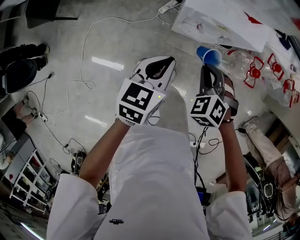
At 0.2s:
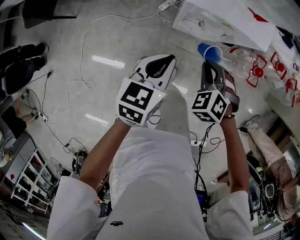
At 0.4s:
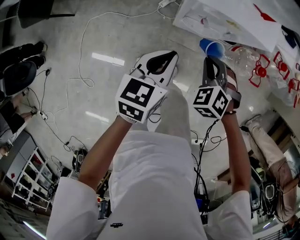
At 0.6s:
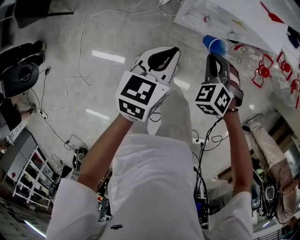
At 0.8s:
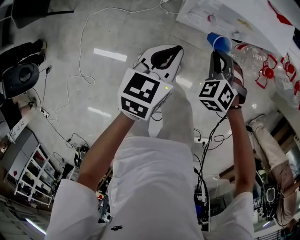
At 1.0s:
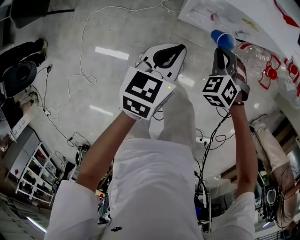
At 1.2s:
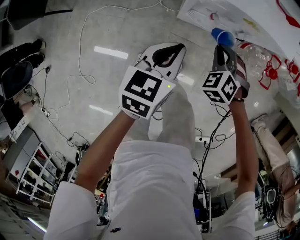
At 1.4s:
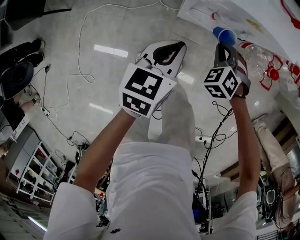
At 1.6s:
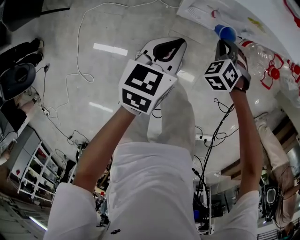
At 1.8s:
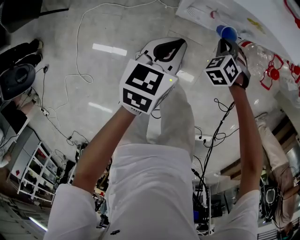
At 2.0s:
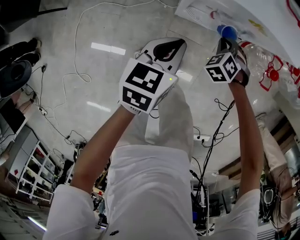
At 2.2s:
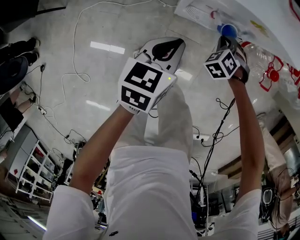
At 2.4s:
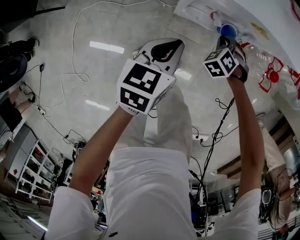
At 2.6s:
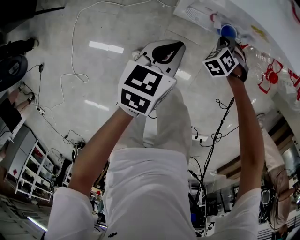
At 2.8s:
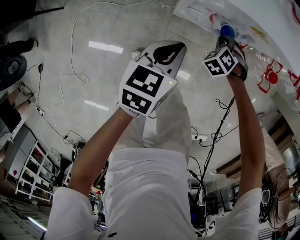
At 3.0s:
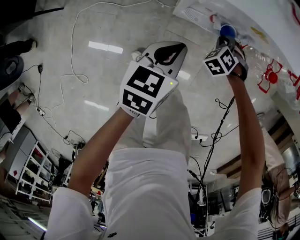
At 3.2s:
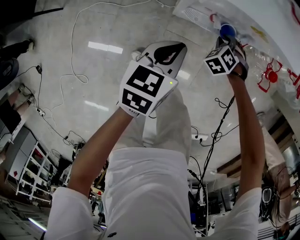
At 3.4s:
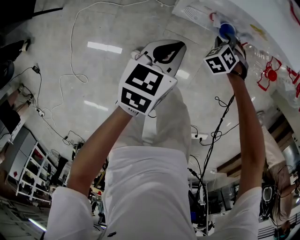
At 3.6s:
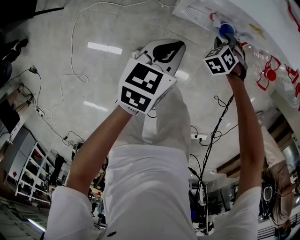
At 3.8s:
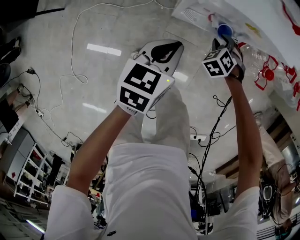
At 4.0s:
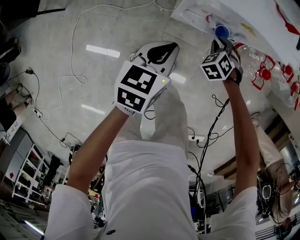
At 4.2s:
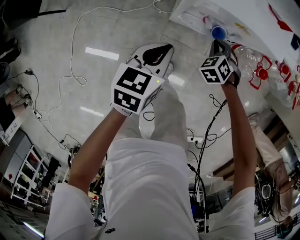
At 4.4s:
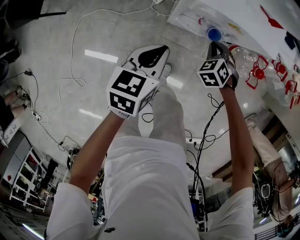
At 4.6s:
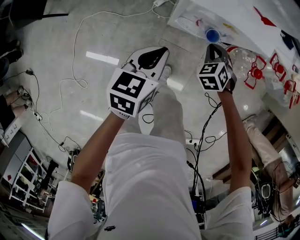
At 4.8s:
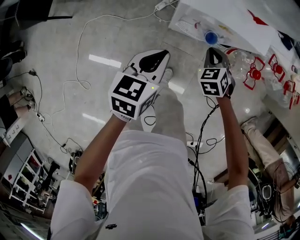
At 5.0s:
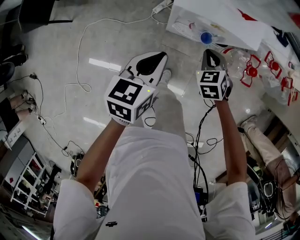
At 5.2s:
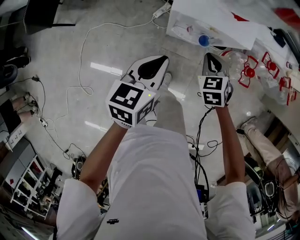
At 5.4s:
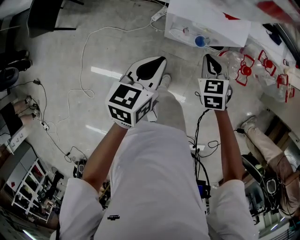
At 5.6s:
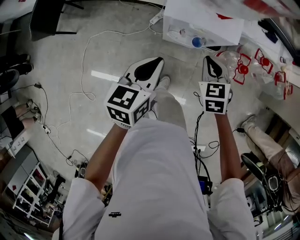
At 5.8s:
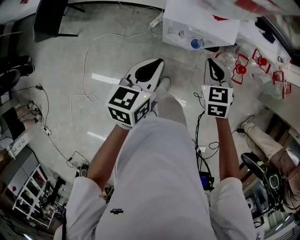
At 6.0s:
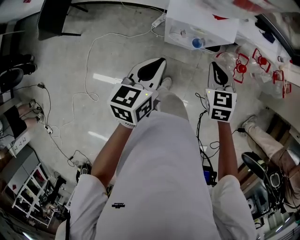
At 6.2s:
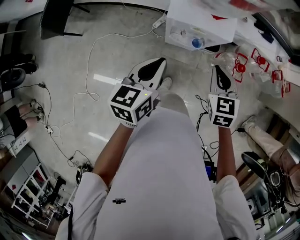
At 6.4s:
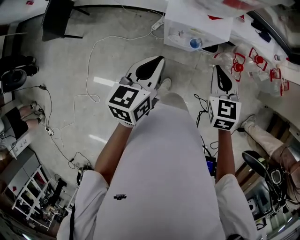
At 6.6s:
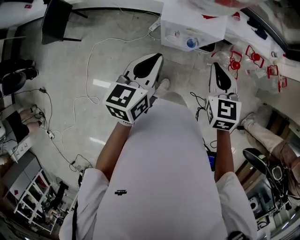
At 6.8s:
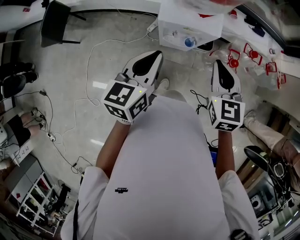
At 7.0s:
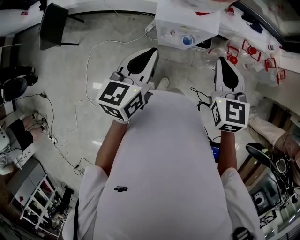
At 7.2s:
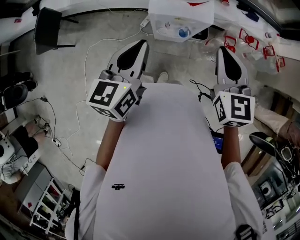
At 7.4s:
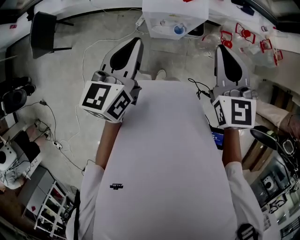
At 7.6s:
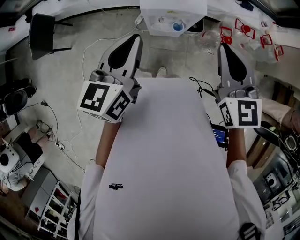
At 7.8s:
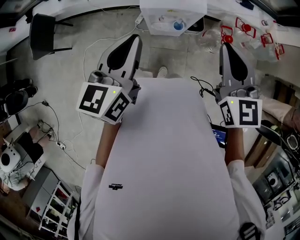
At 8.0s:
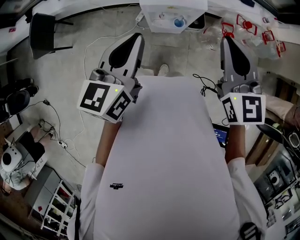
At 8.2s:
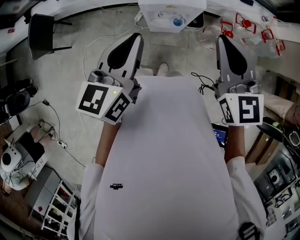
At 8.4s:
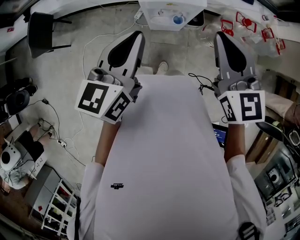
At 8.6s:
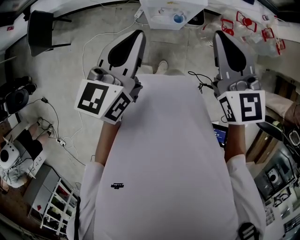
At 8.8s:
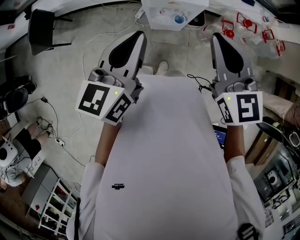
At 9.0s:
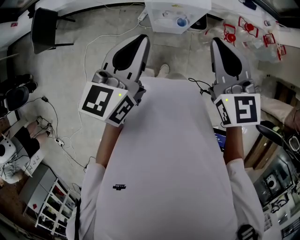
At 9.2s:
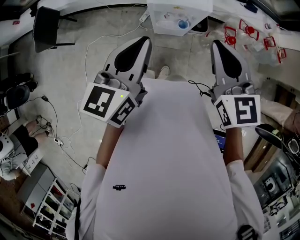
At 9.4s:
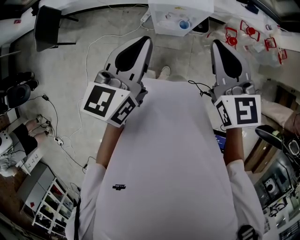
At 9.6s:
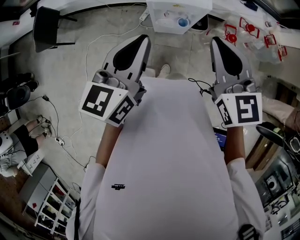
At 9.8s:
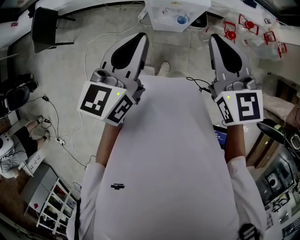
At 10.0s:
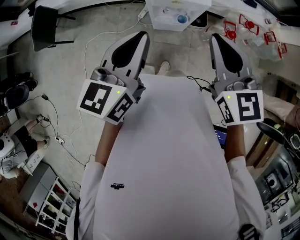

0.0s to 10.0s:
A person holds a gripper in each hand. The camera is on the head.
0.0s to 1.4s: The right gripper heads downward and forward, covering some 20 cm, while the left gripper shifts roughly 10 cm downward.
1.4s to 2.8s: The right gripper goes approximately 10 cm downward and forward.
2.8s to 4.2s: The right gripper heads upward, covering some 5 cm, and opens, then closes again. Meanwhile the left gripper shifts by approximately 5 cm.
4.2s to 5.8s: The grippers both shift upward by roughly 25 cm. The right gripper swivels some 40 degrees.
5.8s to 7.2s: The right gripper goes about 20 cm upward, and swivels about 20 degrees; the left gripper travels upward by about 15 cm.
7.2s to 8.6s: The left gripper moves approximately 5 cm, while the right gripper changes place by about 5 cm.
8.6s to 10.0s: The grippers make only small movements.

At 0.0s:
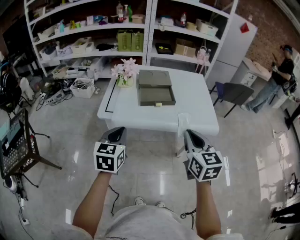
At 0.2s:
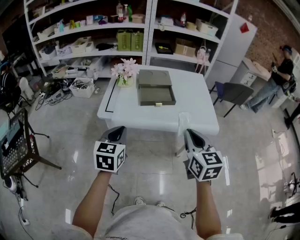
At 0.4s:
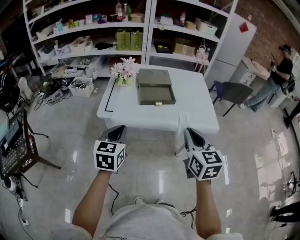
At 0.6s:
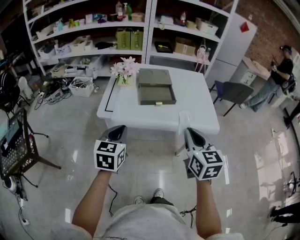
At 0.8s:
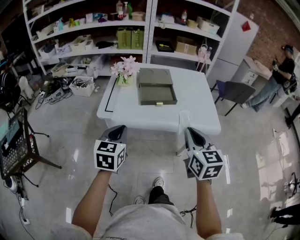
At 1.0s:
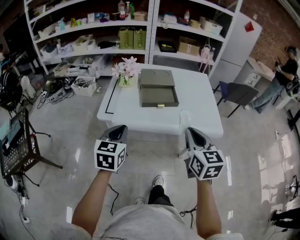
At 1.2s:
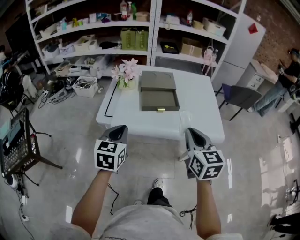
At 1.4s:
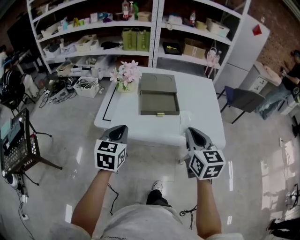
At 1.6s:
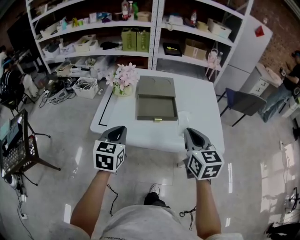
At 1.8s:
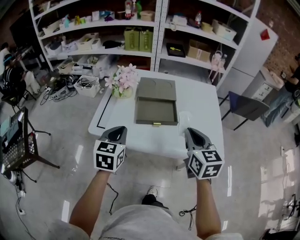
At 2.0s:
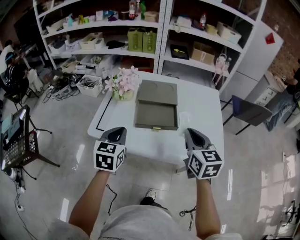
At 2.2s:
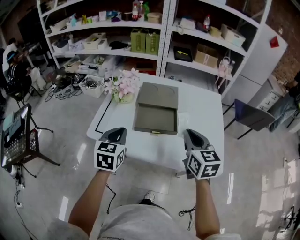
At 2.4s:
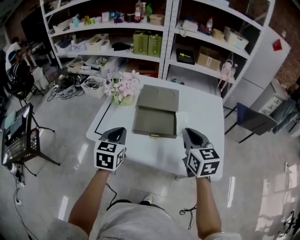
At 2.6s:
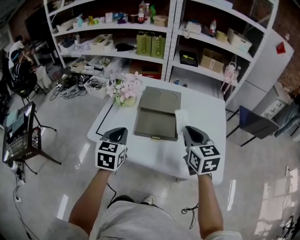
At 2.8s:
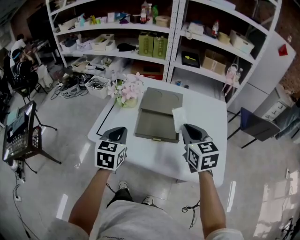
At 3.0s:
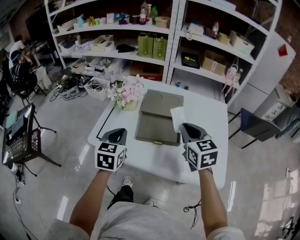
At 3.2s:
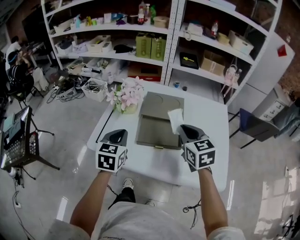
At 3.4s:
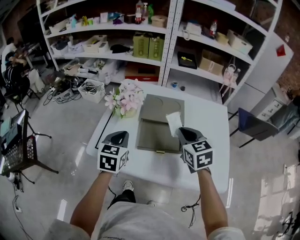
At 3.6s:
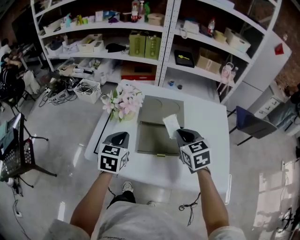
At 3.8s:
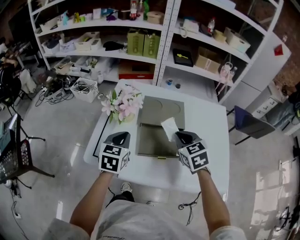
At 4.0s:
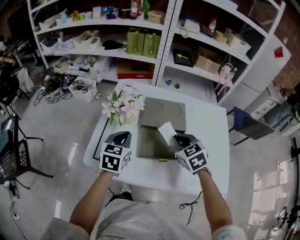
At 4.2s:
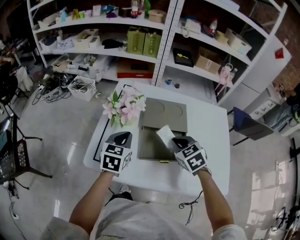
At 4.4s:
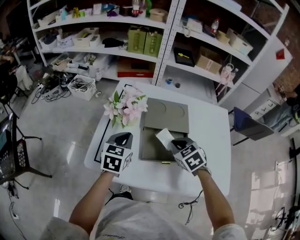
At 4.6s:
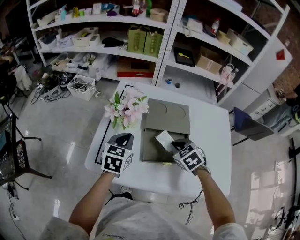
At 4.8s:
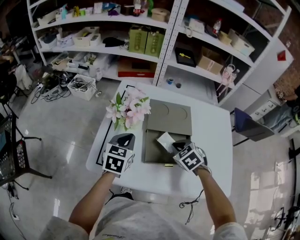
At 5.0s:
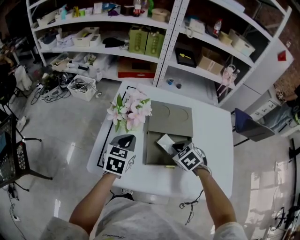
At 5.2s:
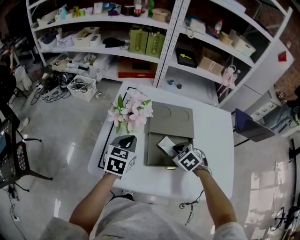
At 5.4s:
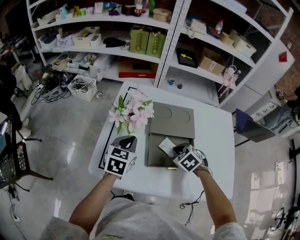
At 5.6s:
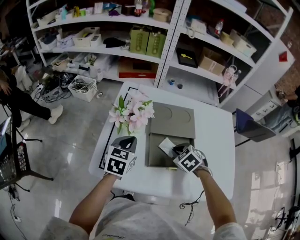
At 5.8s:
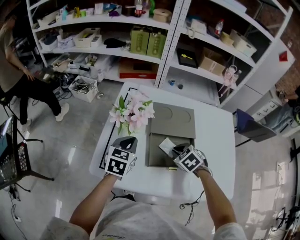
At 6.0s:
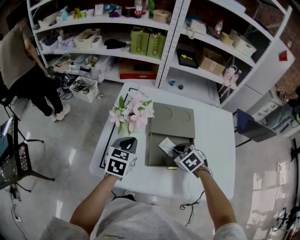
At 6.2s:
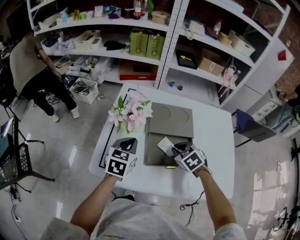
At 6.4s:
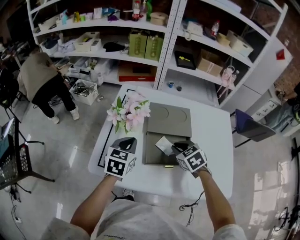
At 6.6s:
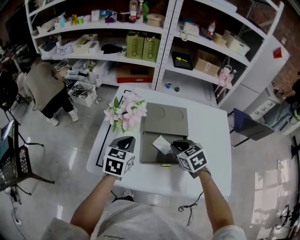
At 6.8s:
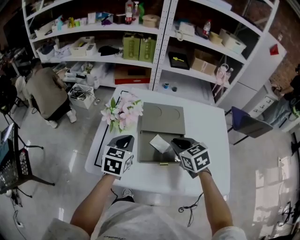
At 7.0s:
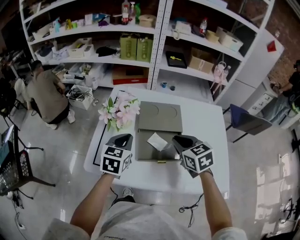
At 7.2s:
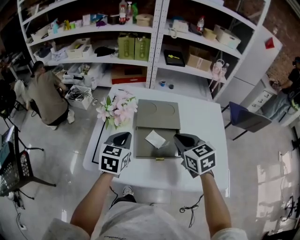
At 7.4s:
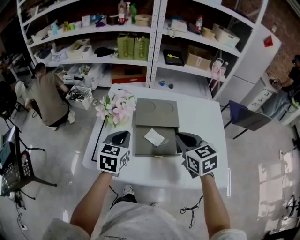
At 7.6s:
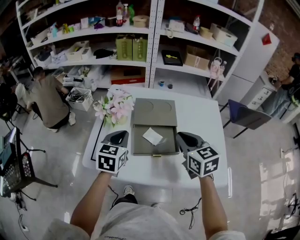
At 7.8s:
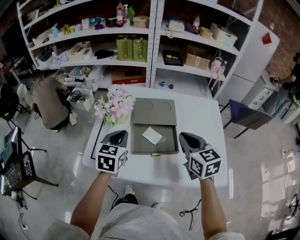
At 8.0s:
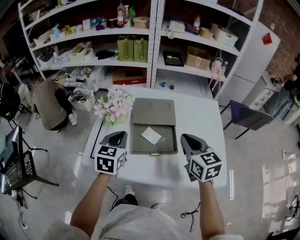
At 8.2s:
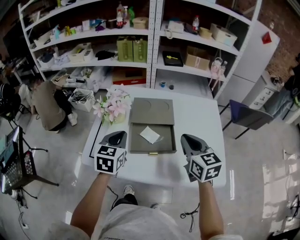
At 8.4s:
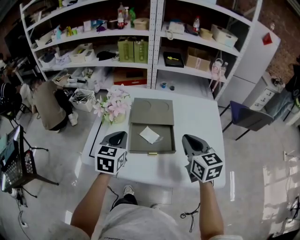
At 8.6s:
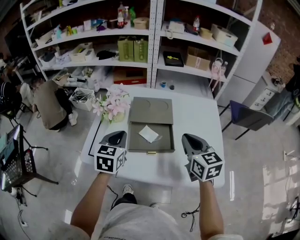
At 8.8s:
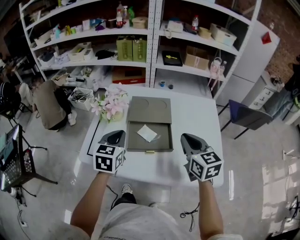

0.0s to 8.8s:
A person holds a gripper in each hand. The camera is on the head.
0.0s to 1.4s: Both grippers travel together forward, roughly 10 cm.
1.4s to 3.0s: The left gripper goes approximately 15 cm forward, while the right gripper goes approximately 20 cm forward.
3.0s to 4.4s: The right gripper goes about 15 cm downward, forward and to the left, and turns by about 30 degrees; the left gripper goes about 15 cm forward and downward.
4.4s to 5.8s: The right gripper shifts roughly 5 cm downward.
5.8s to 7.4s: The left gripper shifts roughly 5 cm upward; the right gripper heads upward, covering about 20 cm, and points its fingers about 40 degrees further upward.
7.4s to 8.8s: The right gripper goes some 5 cm to the right.

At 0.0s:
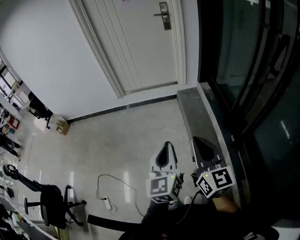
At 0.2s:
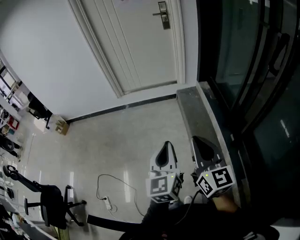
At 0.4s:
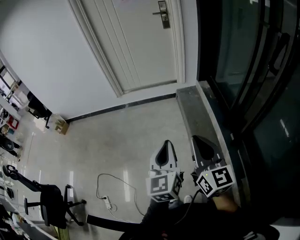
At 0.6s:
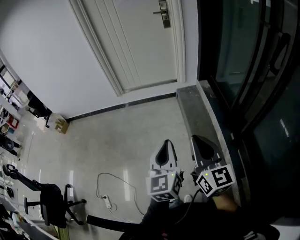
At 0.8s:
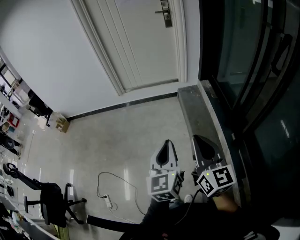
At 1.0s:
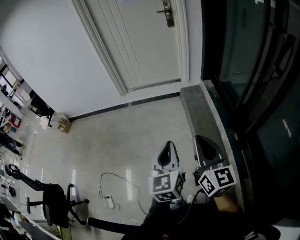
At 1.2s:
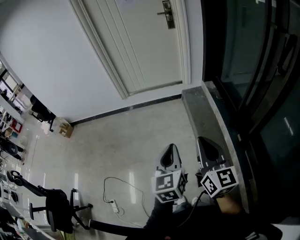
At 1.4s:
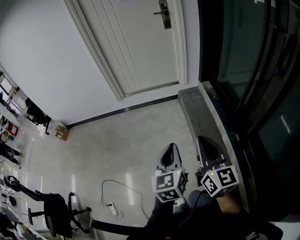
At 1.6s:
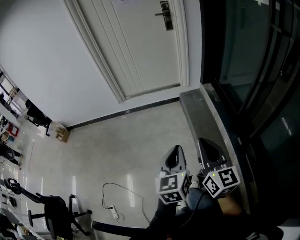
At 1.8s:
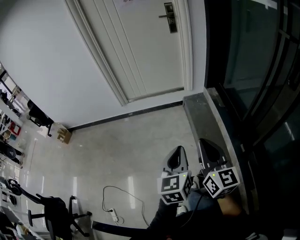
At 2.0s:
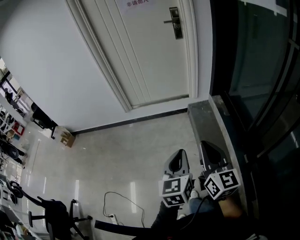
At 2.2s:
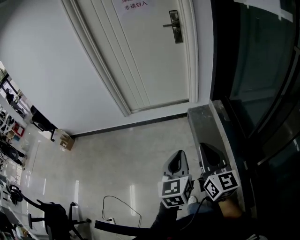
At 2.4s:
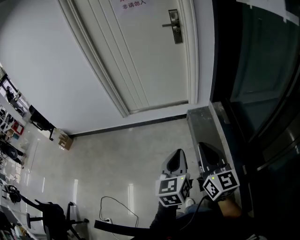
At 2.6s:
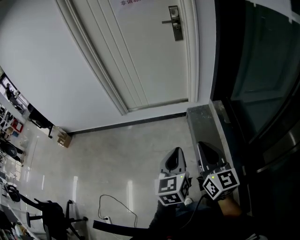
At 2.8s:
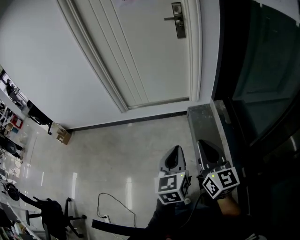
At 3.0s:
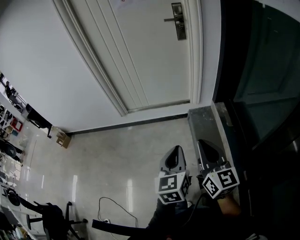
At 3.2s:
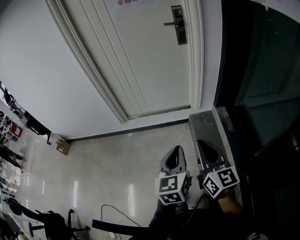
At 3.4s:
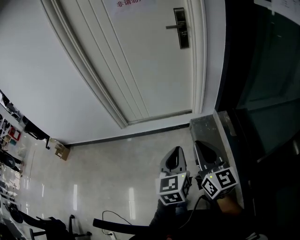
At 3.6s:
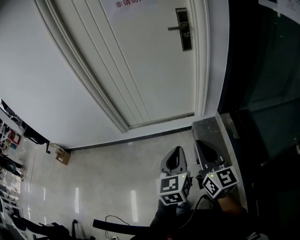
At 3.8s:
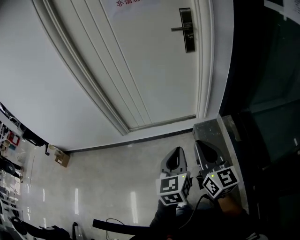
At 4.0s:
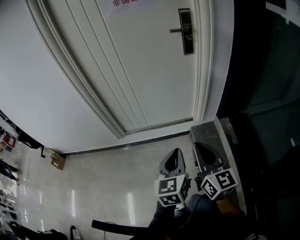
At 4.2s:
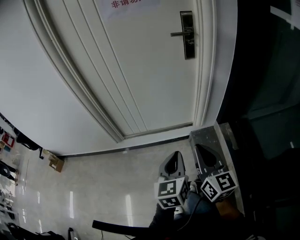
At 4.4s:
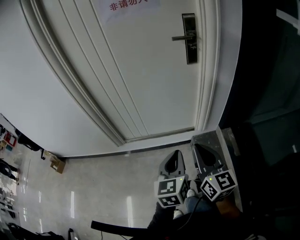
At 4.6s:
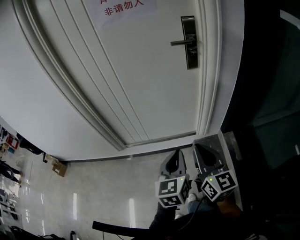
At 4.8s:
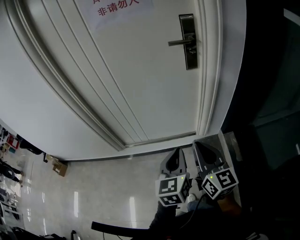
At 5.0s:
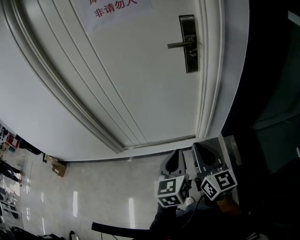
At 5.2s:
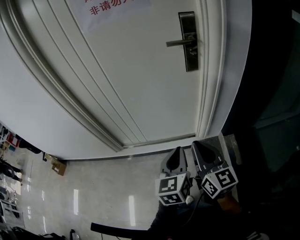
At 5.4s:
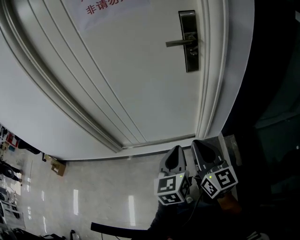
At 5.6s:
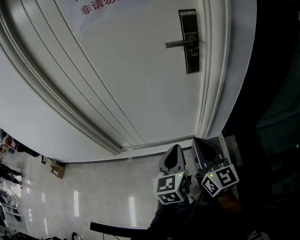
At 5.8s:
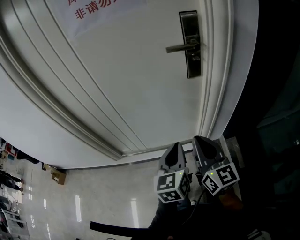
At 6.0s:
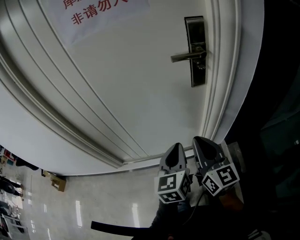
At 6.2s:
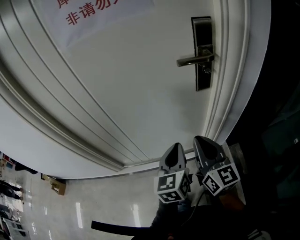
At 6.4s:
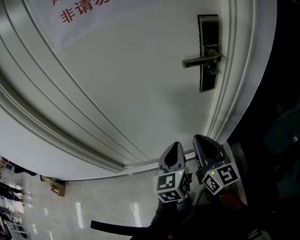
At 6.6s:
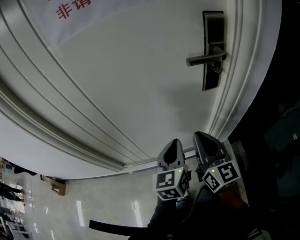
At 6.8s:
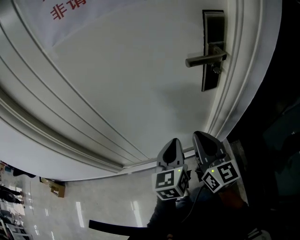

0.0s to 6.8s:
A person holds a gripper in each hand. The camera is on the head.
0.0s to 1.4s: The left gripper travels forward by approximately 5 cm, while the right gripper ends up some 5 cm from where it was.
1.4s to 2.8s: Both grippers travel together forward, approximately 30 cm.
2.8s to 4.0s: Both grippers travel together forward, about 30 cm.
4.0s to 5.4s: The grippers both shift forward by some 25 cm.
5.4s to 6.8s: The two grippers go some 20 cm forward.
